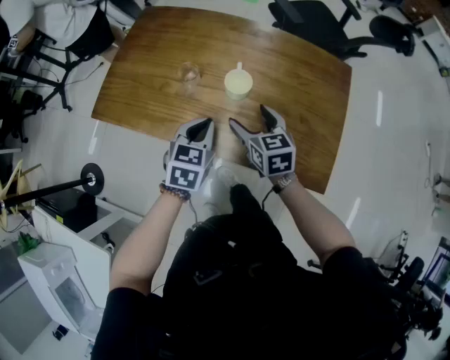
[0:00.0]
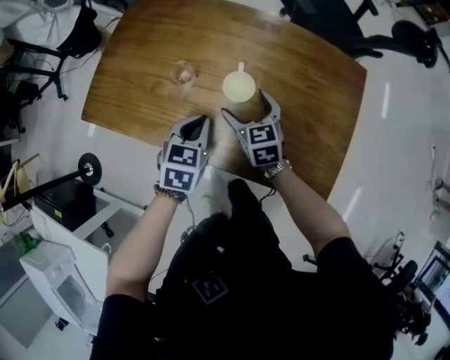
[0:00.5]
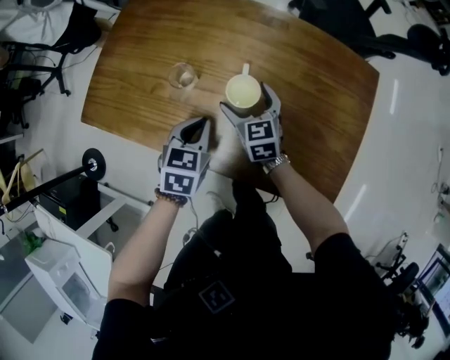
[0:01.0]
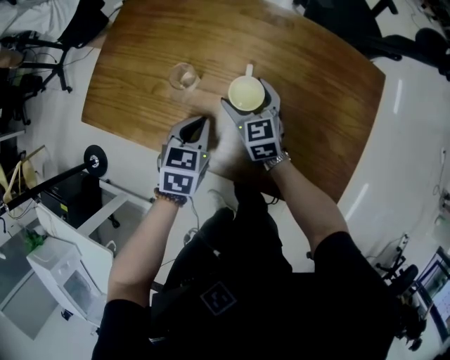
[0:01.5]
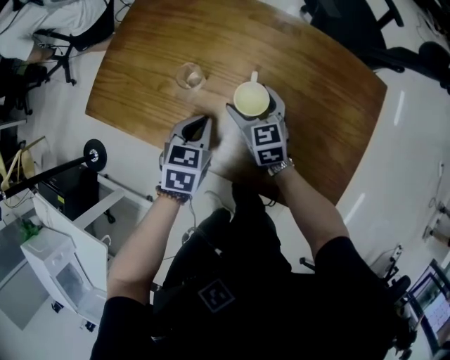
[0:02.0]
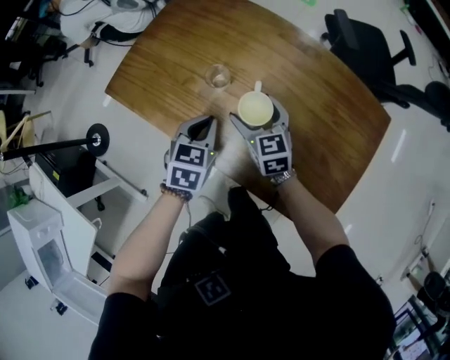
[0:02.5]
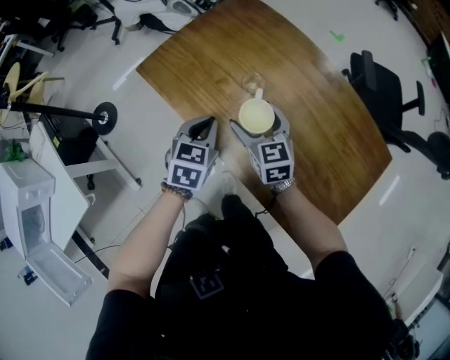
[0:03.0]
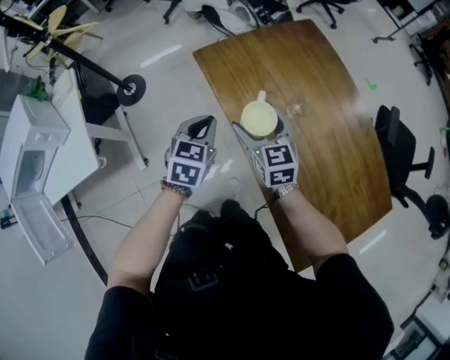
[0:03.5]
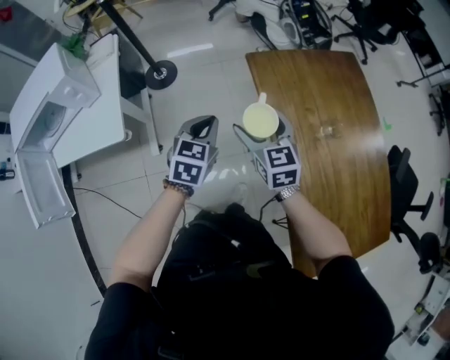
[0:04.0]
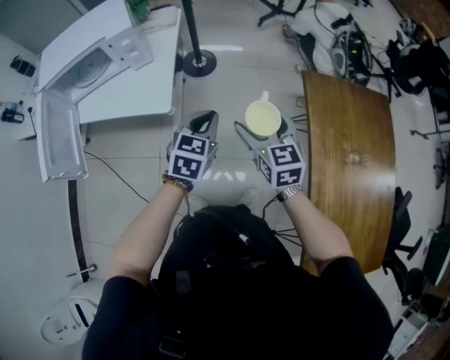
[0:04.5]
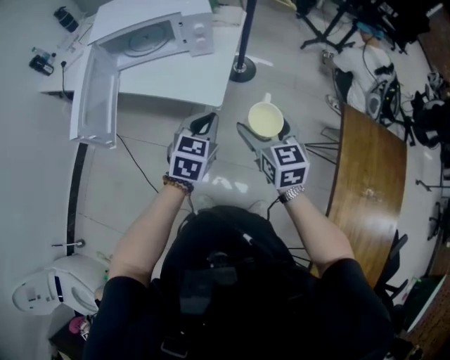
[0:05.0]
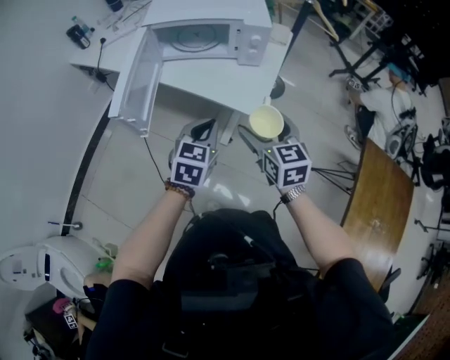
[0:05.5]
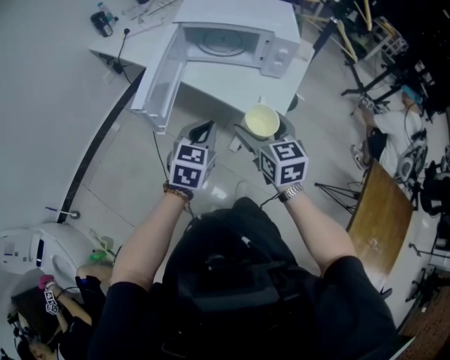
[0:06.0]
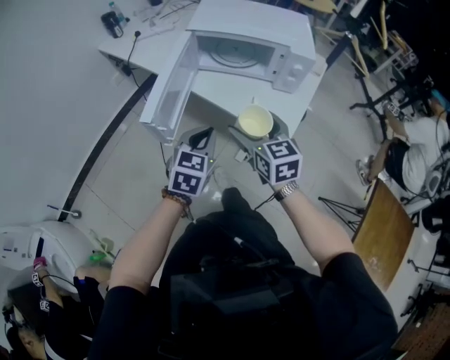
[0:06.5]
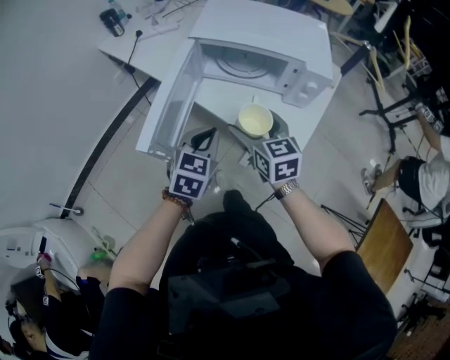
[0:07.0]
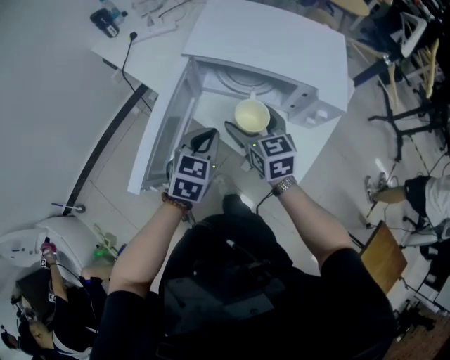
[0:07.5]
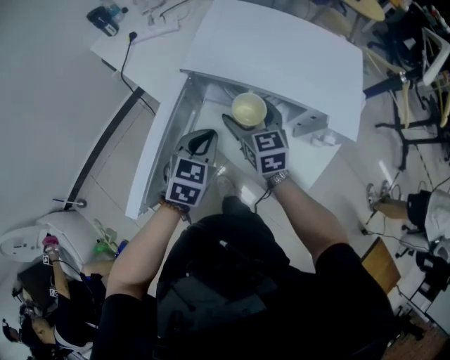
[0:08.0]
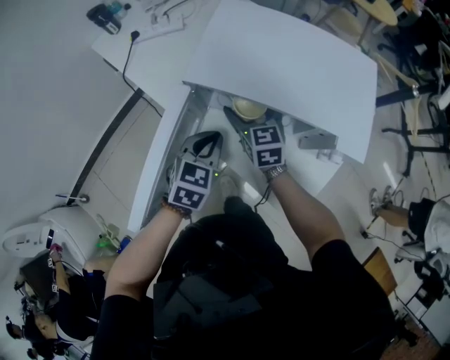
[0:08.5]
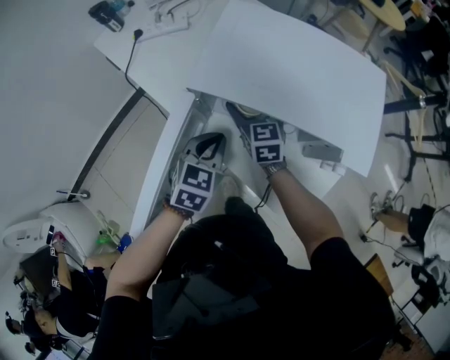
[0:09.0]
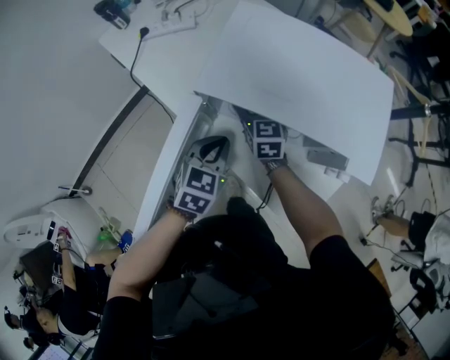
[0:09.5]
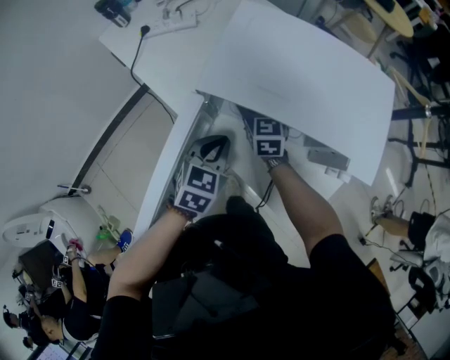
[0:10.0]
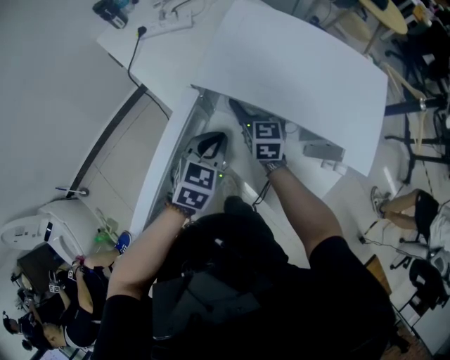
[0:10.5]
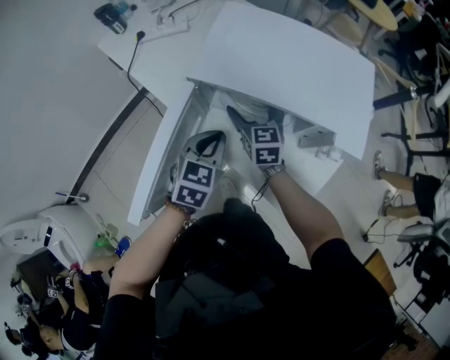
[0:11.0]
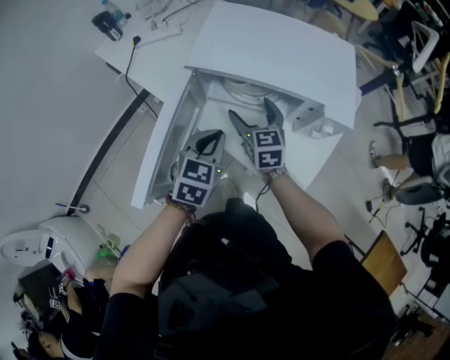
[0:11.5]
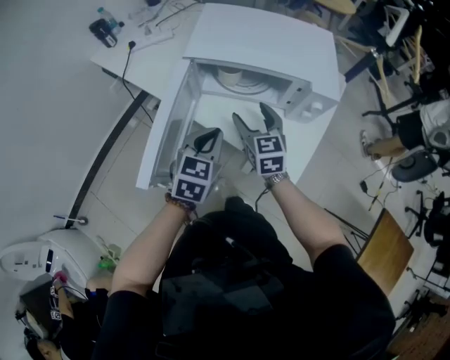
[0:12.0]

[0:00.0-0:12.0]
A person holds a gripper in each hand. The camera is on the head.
0:00.0 to 0:02.0: Both grippers move forward and downward, some 15 cm.
0:02.0 to 0:04.0: The left gripper ends up roughly 40 cm from where it was, and swivels some 50 degrees, while the right gripper moves roughly 40 cm, and swivels some 50 degrees.
0:04.0 to 0:06.0: The two grippers travel together, roughly 60 cm. The left gripper changes its angle by about 50 degrees, while the right gripper turns by about 40 degrees.
0:06.0 to 0:08.0: Both grippers move forward, about 30 cm.
0:08.0 to 0:10.0: The right gripper moves forward, roughly 10 cm. Meanwhile the left gripper moves some 5 cm.
0:10.0 to 0:12.0: The right gripper is displaced backward by approximately 20 cm. The left gripper is displaced backward and upward by about 15 cm.

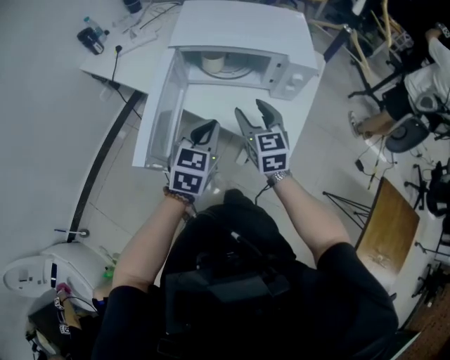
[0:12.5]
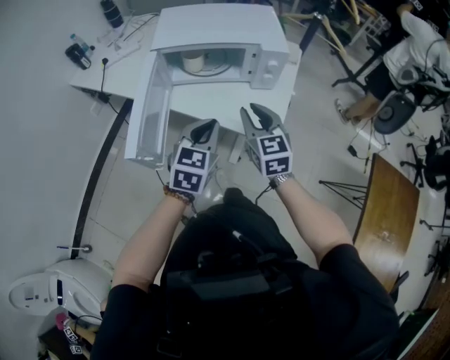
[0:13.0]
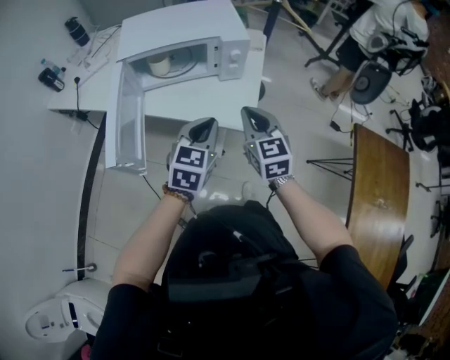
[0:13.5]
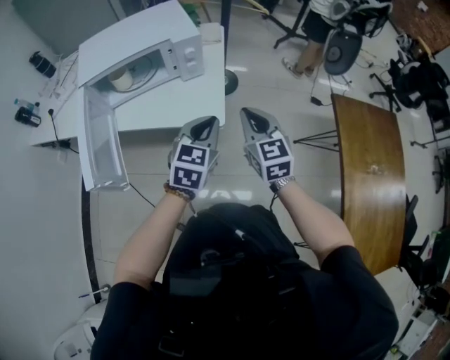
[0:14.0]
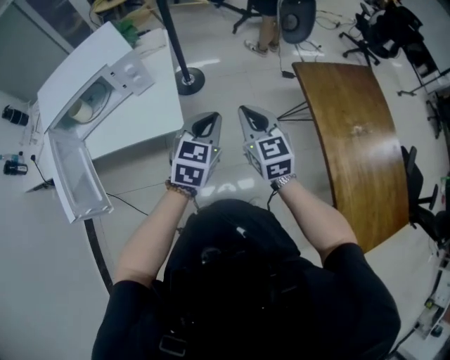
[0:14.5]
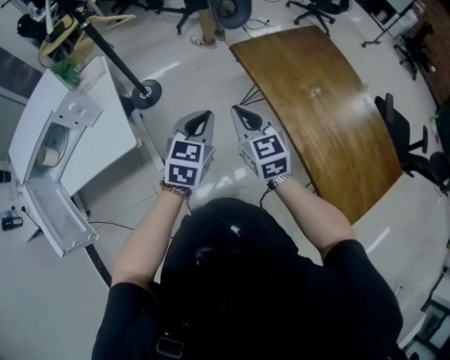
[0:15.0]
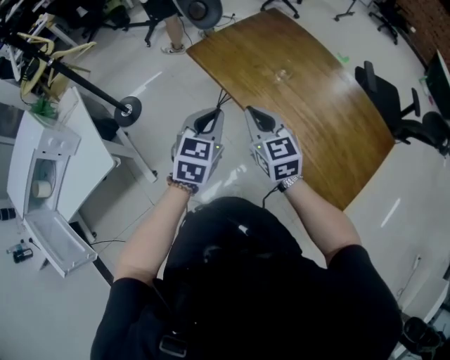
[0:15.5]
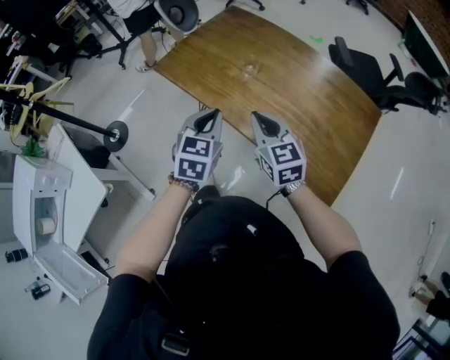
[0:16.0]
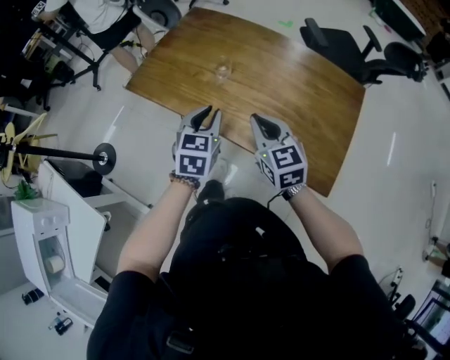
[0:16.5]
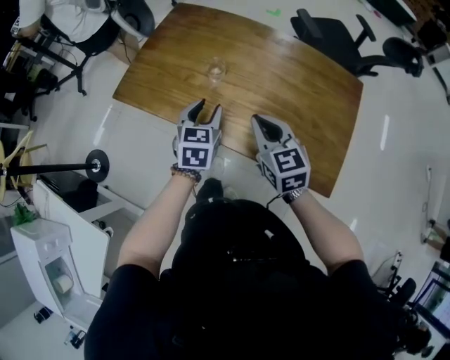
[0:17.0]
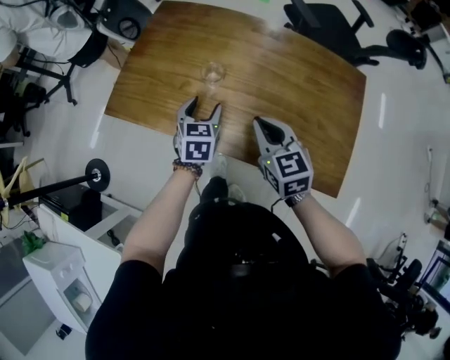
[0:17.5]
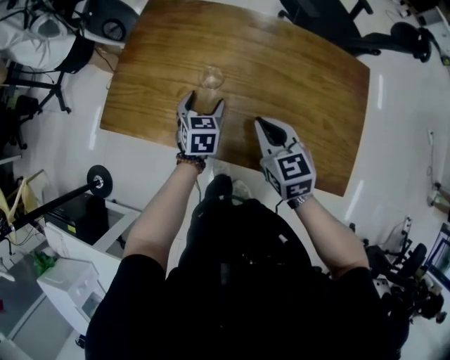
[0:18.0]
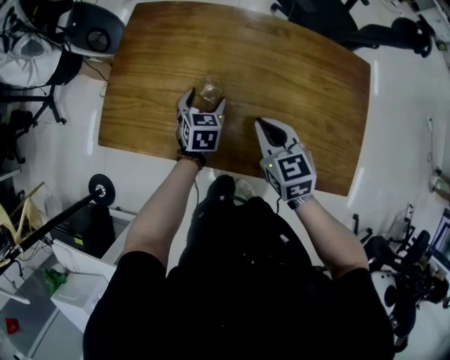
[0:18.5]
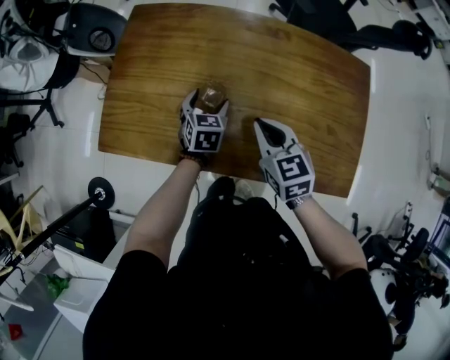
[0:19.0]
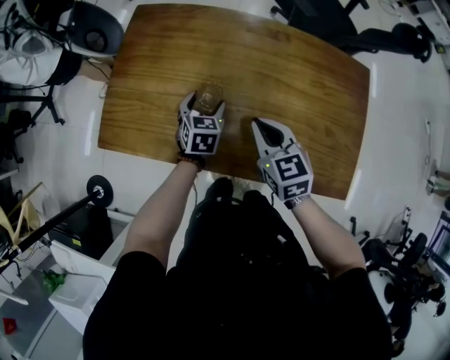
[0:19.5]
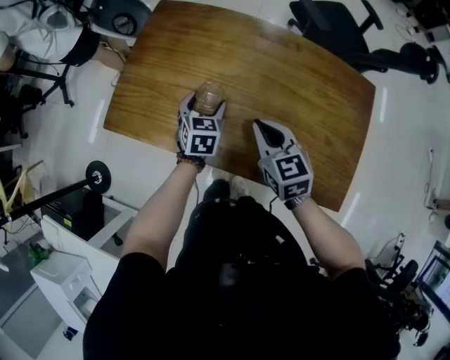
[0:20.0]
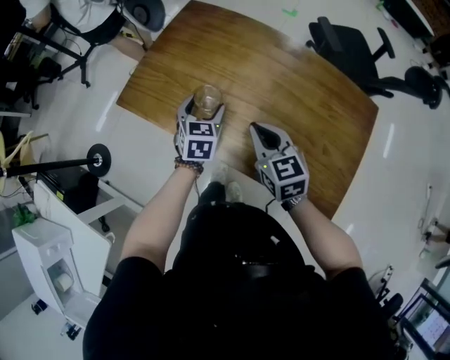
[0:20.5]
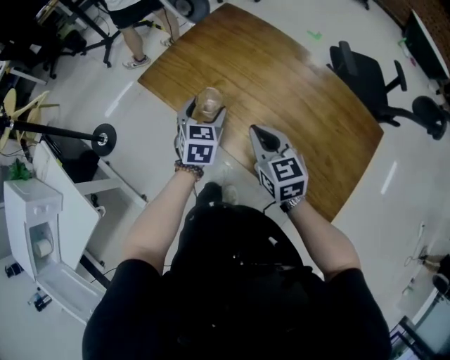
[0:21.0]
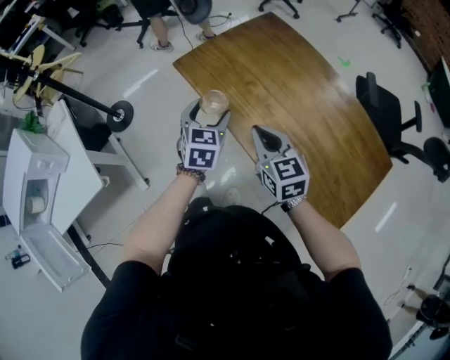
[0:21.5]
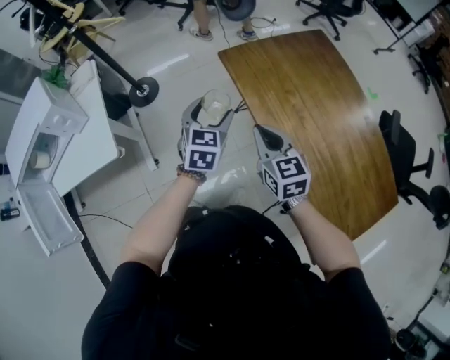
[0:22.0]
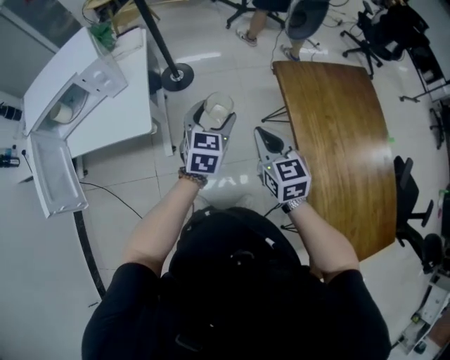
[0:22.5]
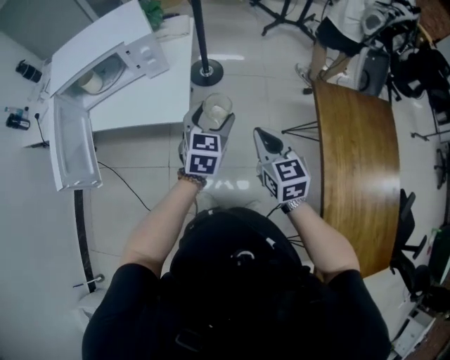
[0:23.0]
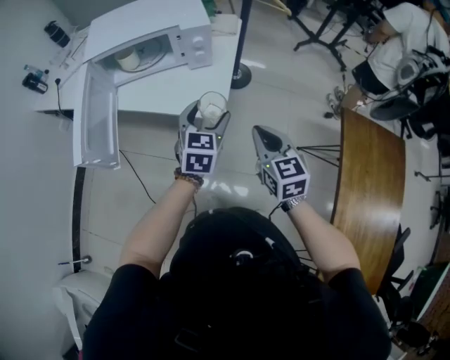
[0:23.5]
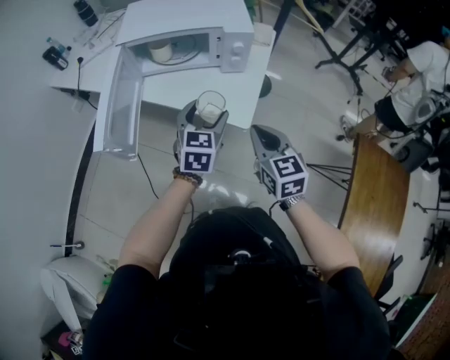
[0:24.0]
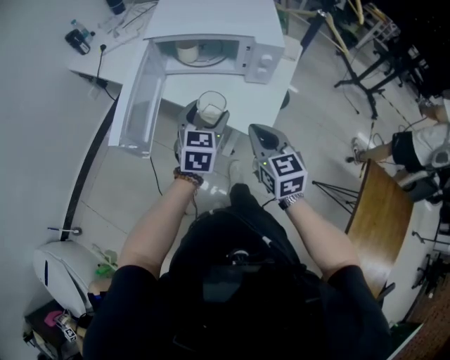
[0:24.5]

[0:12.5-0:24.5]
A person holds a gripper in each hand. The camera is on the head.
0:12.5 to 0:14.5: The left gripper shifts by roughly 40 cm, and rotates about 40 degrees. The right gripper ends up about 40 cm from where it was, turns by about 30 degrees, and closes up.
0:14.5 to 0:16.5: The two grippers travel together, roughly 50 cm. The left gripper turns by roughly 40 degrees; the right gripper turns by roughly 50 degrees.
0:16.5 to 0:18.5: The left gripper goes roughly 25 cm forward and downward, and opens up, while the right gripper travels forward and downward by roughly 15 cm, and turns by some 20 degrees.
0:18.5 to 0:20.5: The right gripper changes place by roughly 5 cm; the left gripper is displaced backward, upward and to the left by approximately 10 cm.
0:20.5 to 0:22.5: The right gripper moves approximately 35 cm, and swivels about 50 degrees. Meanwhile the left gripper changes place by approximately 40 cm, and rotates roughly 50 degrees.
0:22.5 to 0:24.5: The pair of grippers is taken roughly 40 cm. The right gripper changes its angle by roughly 40 degrees, while the left gripper changes its angle by some 40 degrees.

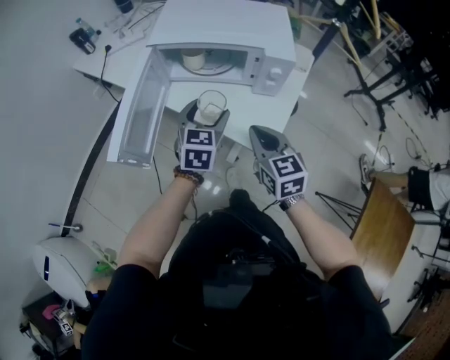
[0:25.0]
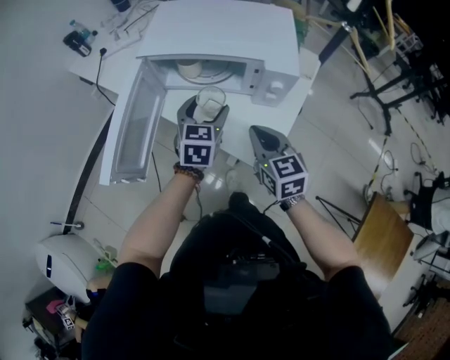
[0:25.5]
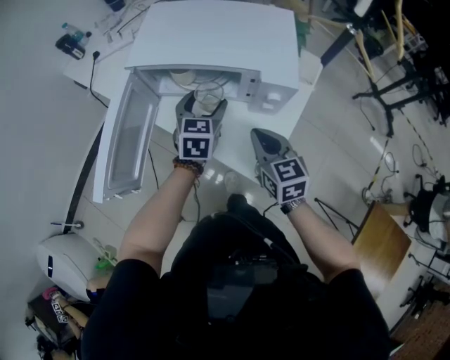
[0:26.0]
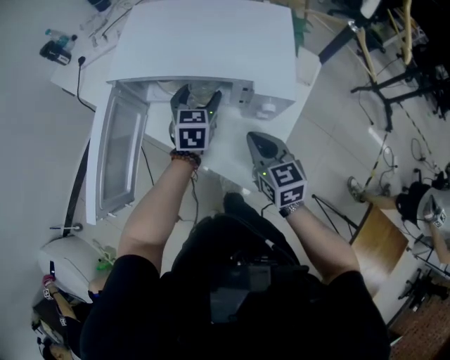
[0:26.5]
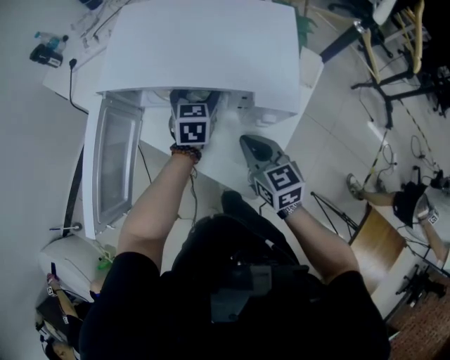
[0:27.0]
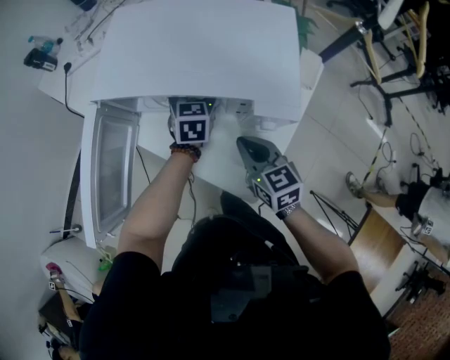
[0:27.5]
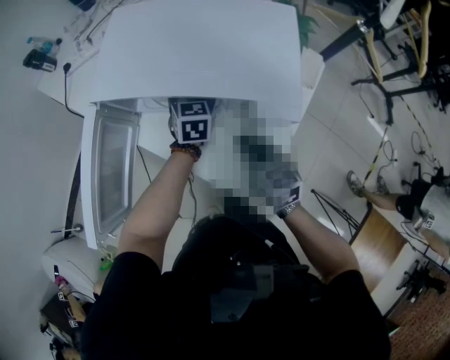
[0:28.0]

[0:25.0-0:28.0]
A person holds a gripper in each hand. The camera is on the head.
0:25.0 to 0:26.5: The left gripper shifts about 20 cm forward; the right gripper shifts approximately 15 cm forward, to the right and downward.
0:26.5 to 0:28.0: The left gripper shifts some 5 cm forward.
